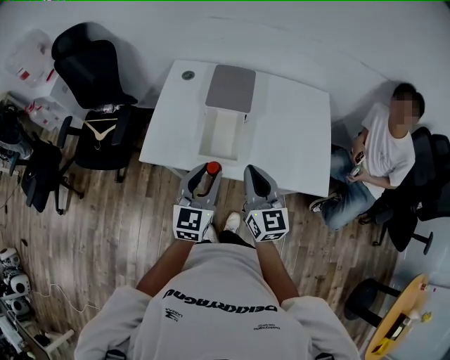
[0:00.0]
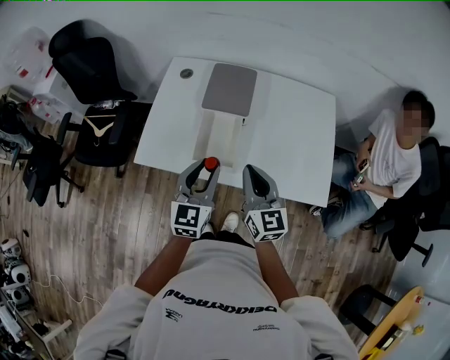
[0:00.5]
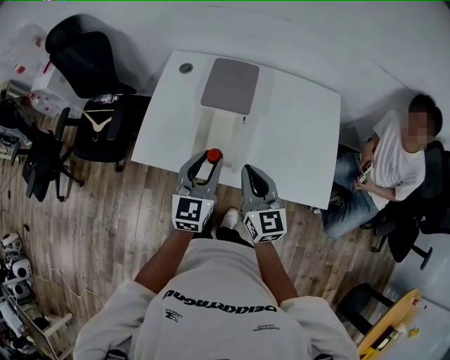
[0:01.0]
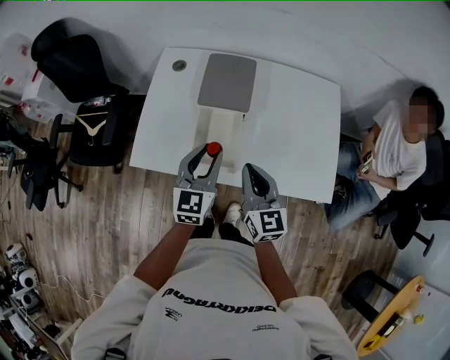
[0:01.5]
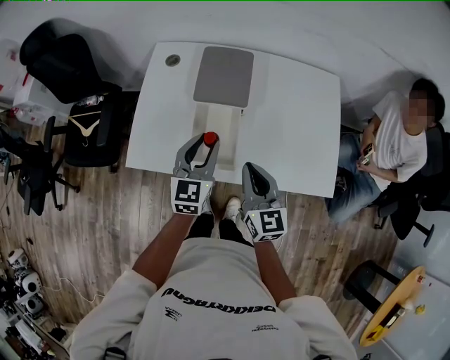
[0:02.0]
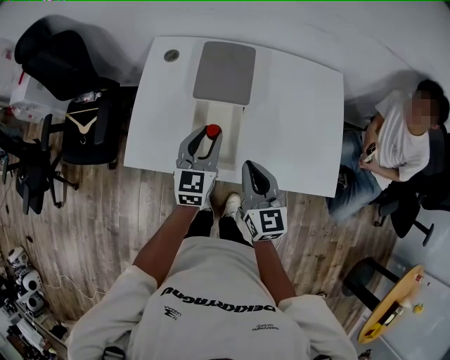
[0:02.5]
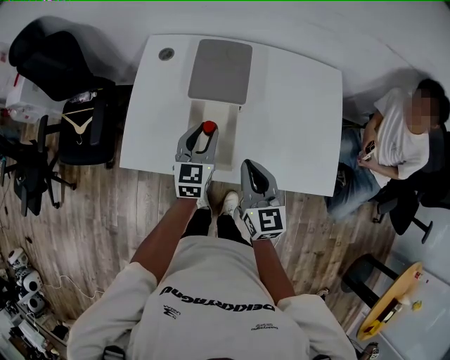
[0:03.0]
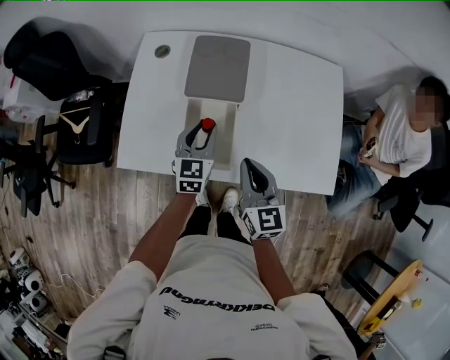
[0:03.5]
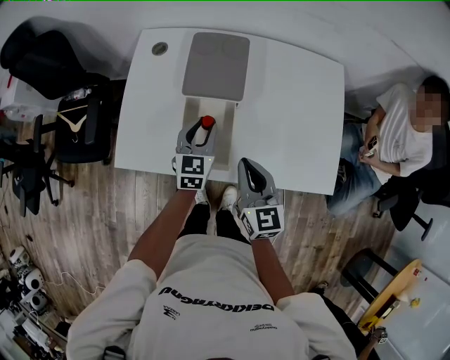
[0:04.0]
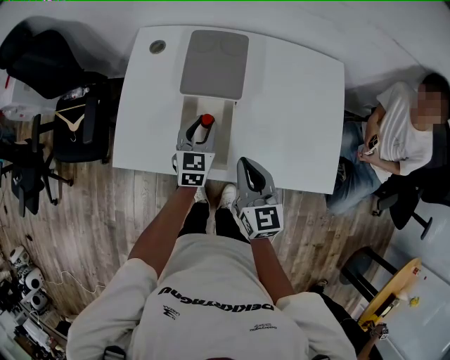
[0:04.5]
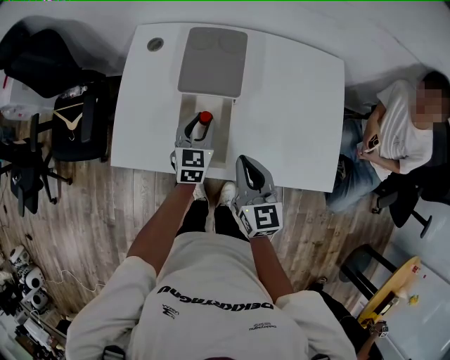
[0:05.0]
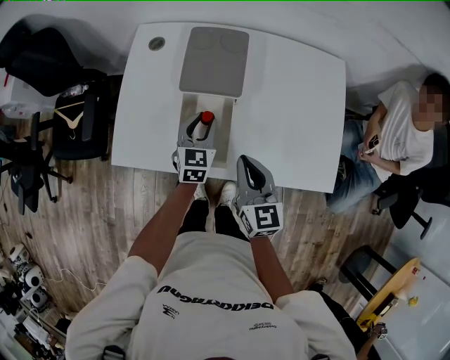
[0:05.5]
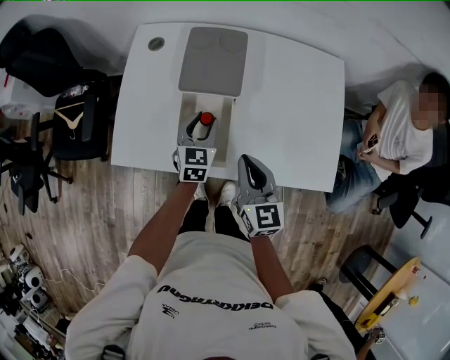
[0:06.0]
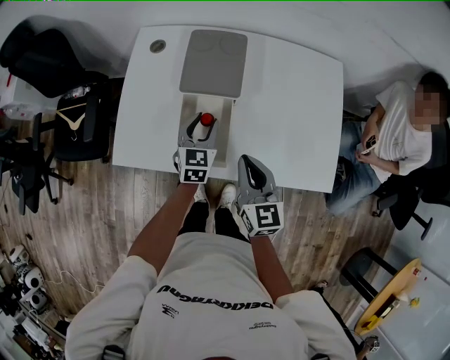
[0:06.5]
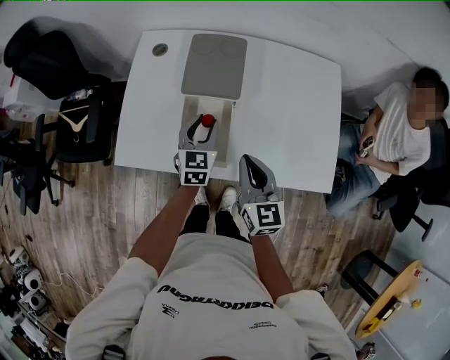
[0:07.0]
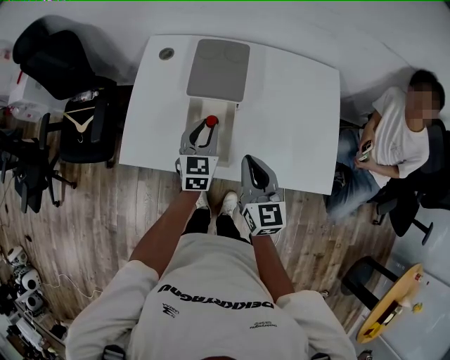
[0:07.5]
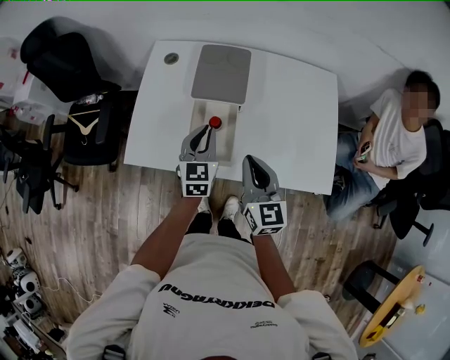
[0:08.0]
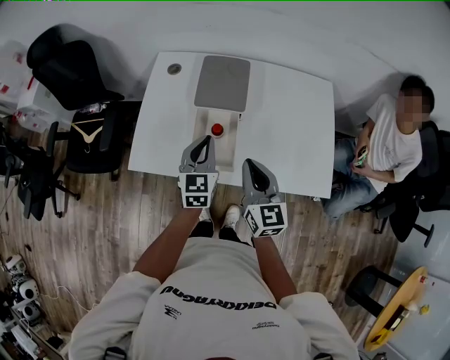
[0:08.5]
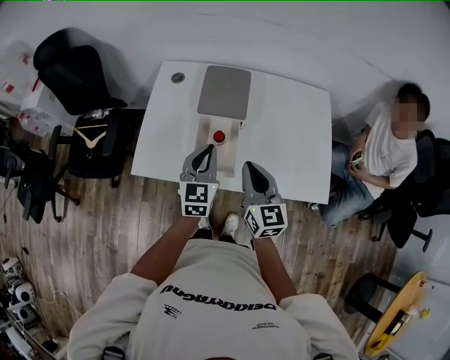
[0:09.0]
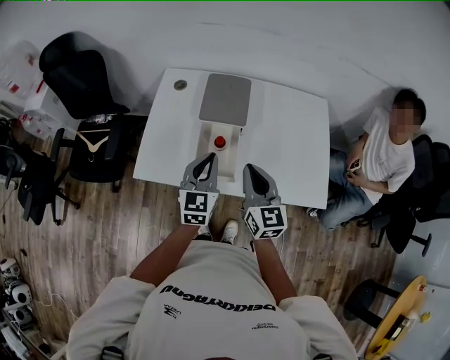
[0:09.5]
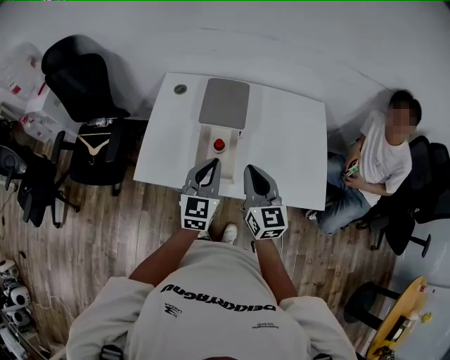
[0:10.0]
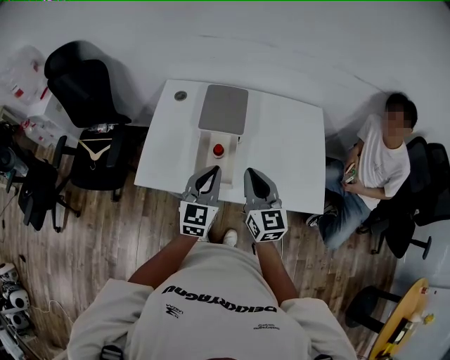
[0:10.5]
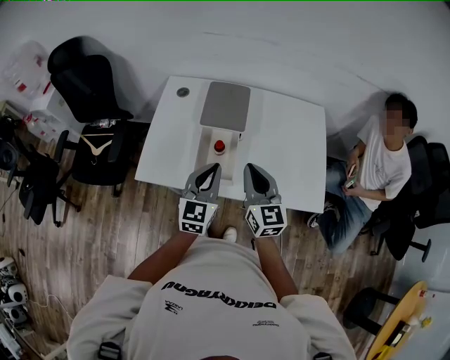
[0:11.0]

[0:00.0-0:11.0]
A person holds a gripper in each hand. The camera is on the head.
0:00.0 to 0:02.0: The left gripper heads forward and downward, covering roughly 15 cm, while the right gripper is displaced forward and downward by approximately 10 cm.
0:02.0 to 0:03.5: The left gripper goes roughly 10 cm downward and forward.
0:03.5 to 0:05.5: The grippers move only a little.
0:05.5 to 0:07.5: The left gripper goes some 5 cm upward.
0:07.5 to 0:09.0: The left gripper shifts about 10 cm upward and backward, and closes its fingers.
0:09.0 to 0:11.0: The left gripper is displaced backward by some 5 cm.

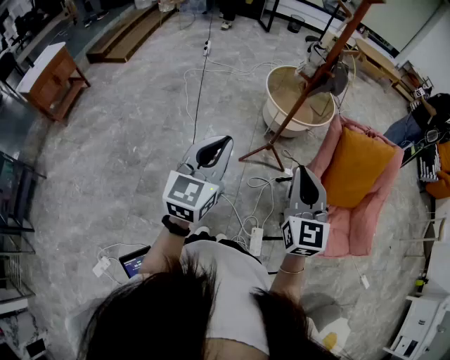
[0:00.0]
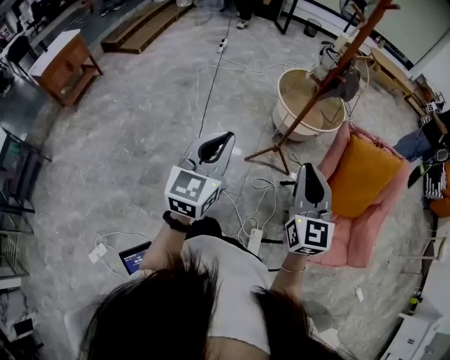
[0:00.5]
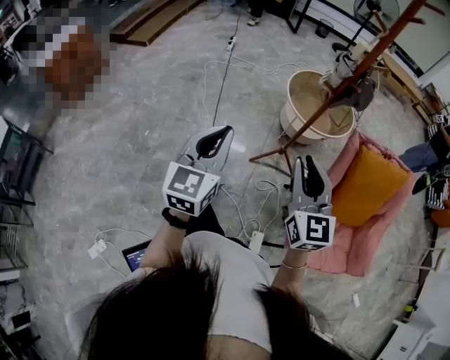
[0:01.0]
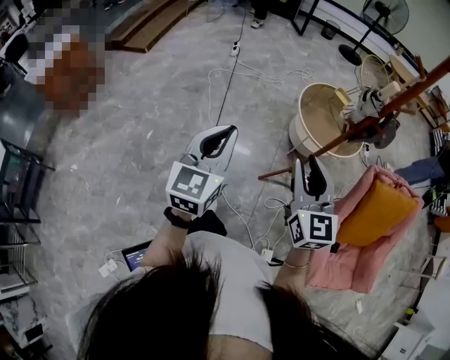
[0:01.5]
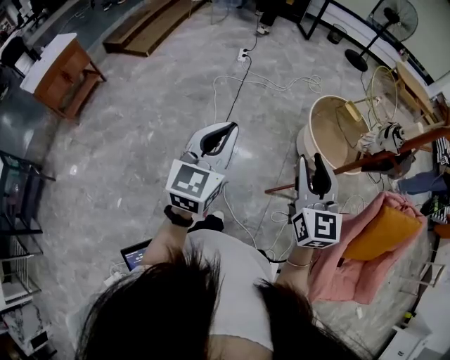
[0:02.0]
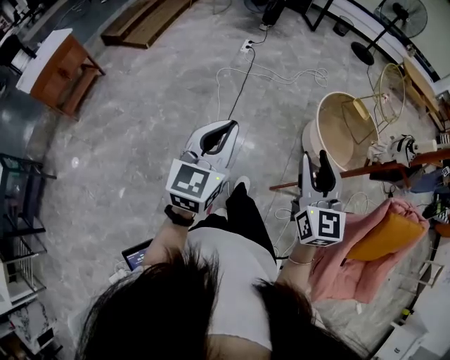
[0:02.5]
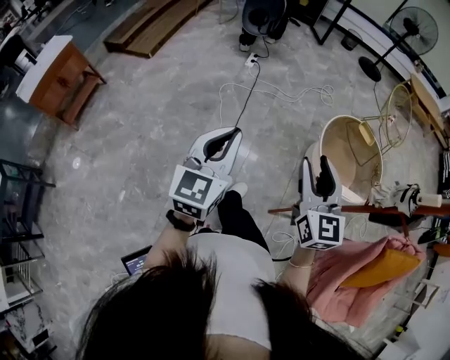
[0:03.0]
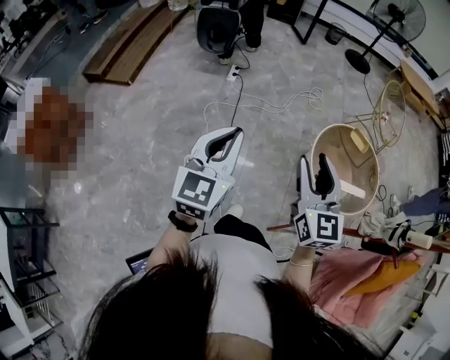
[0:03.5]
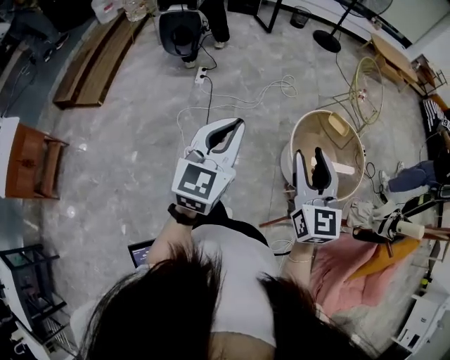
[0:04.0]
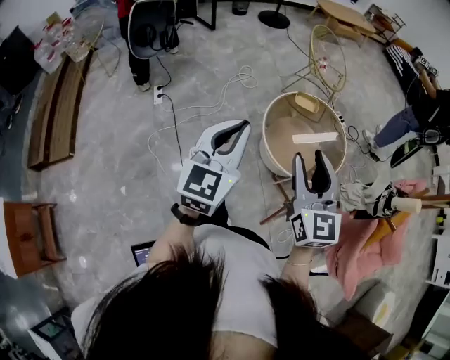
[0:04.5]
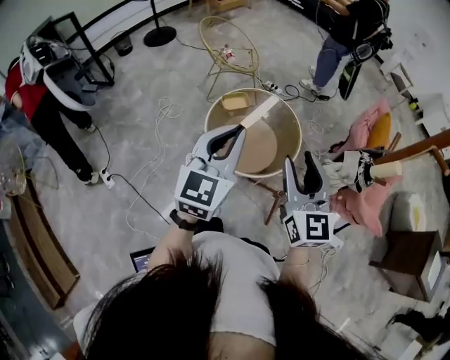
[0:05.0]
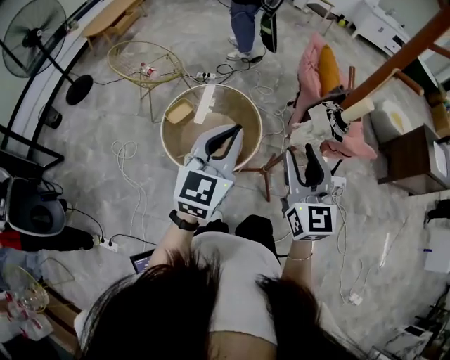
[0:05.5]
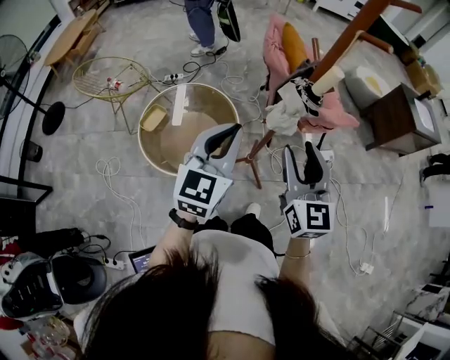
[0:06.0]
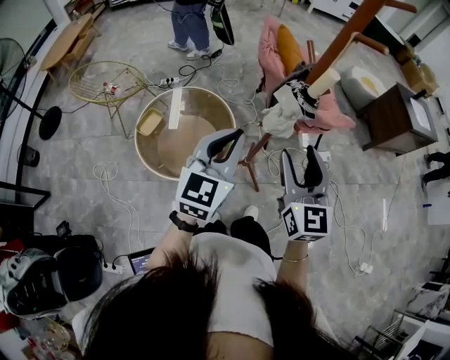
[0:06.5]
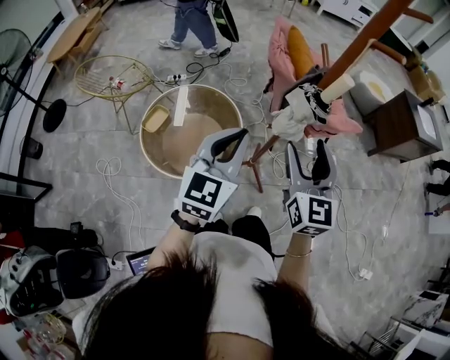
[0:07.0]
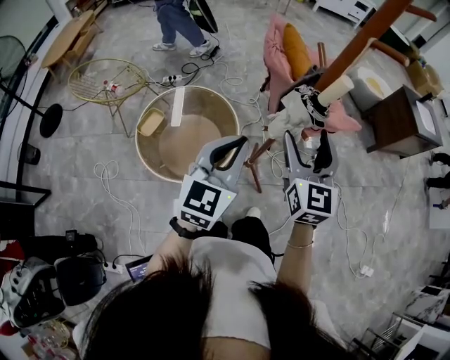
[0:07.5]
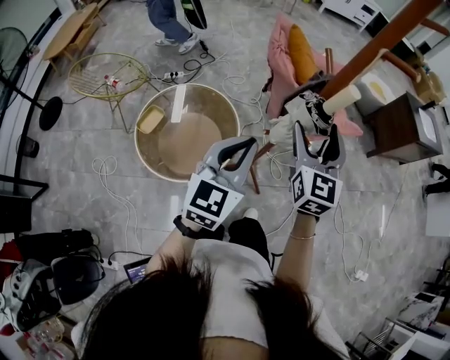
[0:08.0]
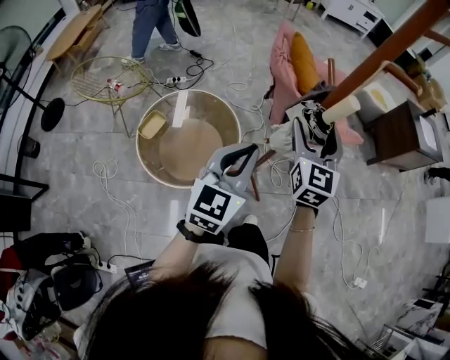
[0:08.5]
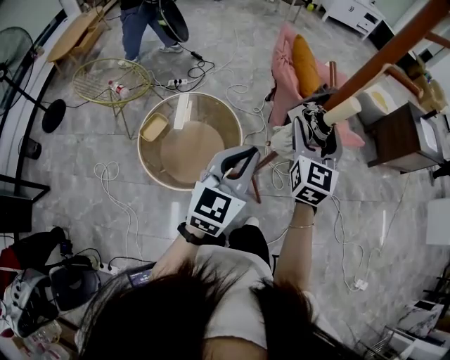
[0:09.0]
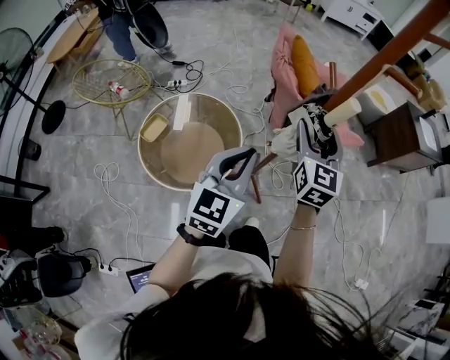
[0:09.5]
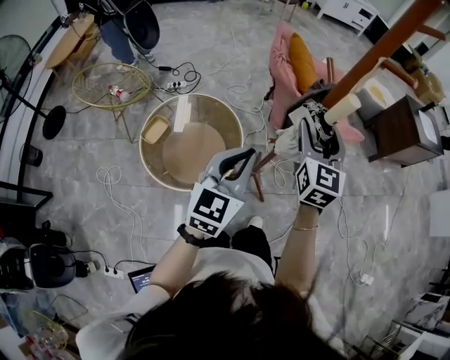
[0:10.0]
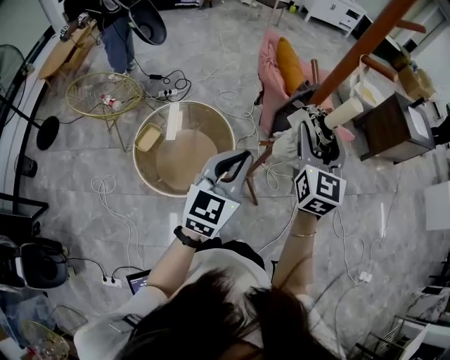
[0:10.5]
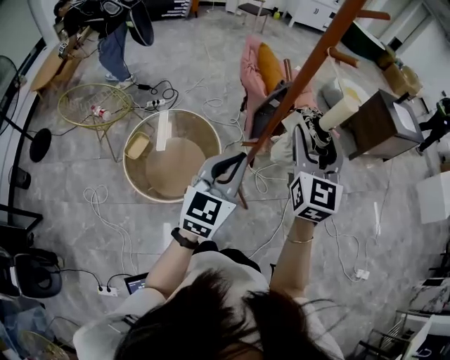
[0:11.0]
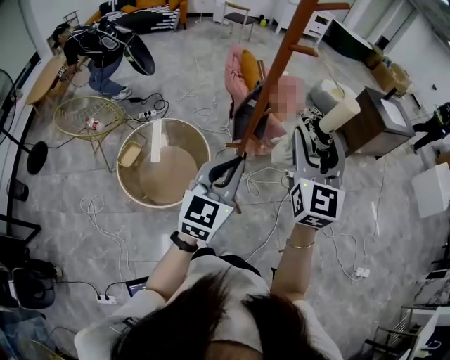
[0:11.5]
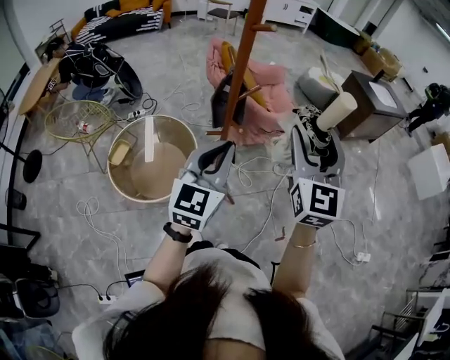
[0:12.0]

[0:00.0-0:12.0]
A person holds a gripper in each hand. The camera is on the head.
0:00.0 to 0:02.0: Both grippers travel together forward and to the left, approximately 40 cm.
0:02.0 to 0:04.0: The grippers both shift forward by some 40 cm.
0:04.0 to 0:06.0: The left gripper changes place by about 40 cm, and turns by about 100 degrees; the right gripper shifts by some 20 cm, and changes its angle by roughly 90 degrees.
0:06.0 to 0:08.0: The right gripper goes roughly 10 cm forward, and opens up.
0:08.0 to 0:10.0: The grippers stay close to where they were, moving slightly.
0:10.0 to 0:12.0: The left gripper moves to the right and upward, some 15 cm. The right gripper moves to the right, backward and upward, about 25 cm.

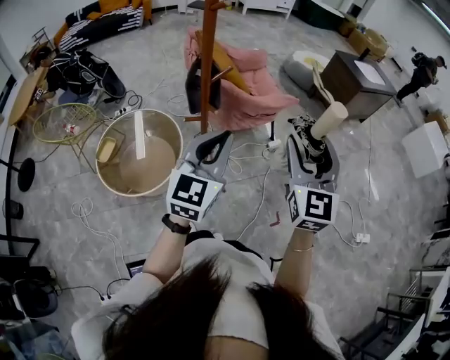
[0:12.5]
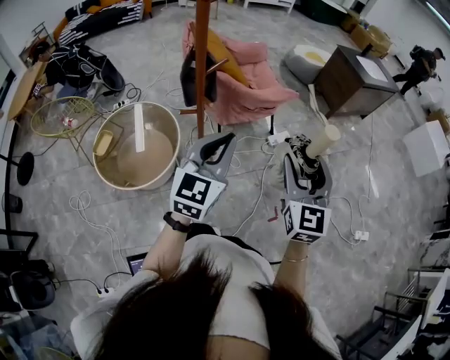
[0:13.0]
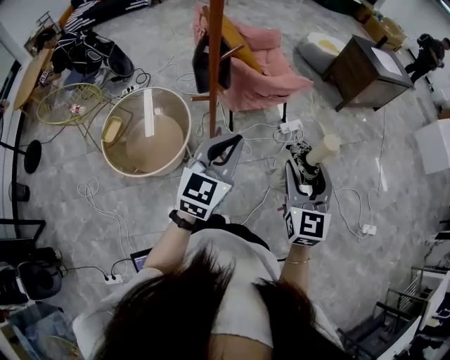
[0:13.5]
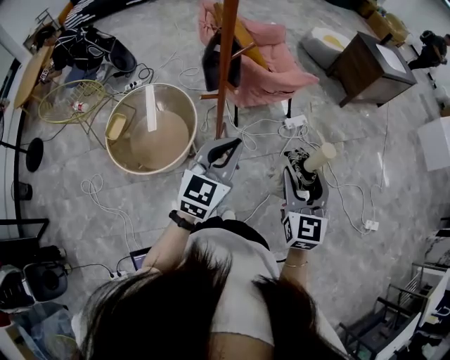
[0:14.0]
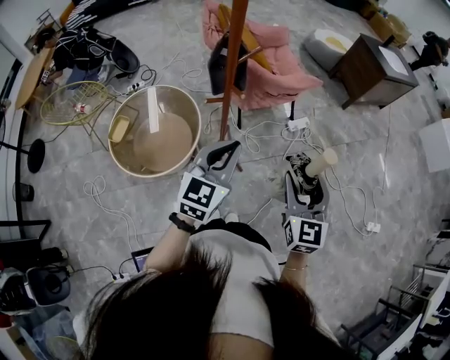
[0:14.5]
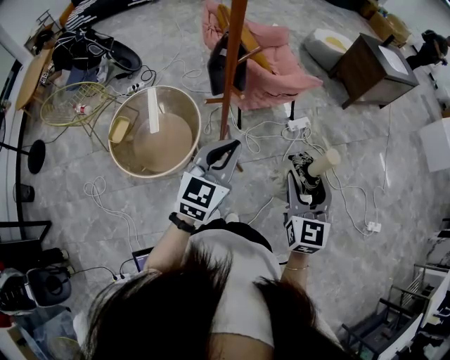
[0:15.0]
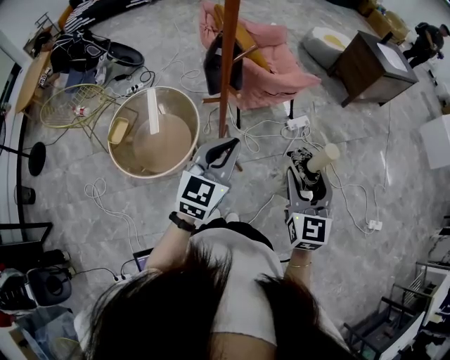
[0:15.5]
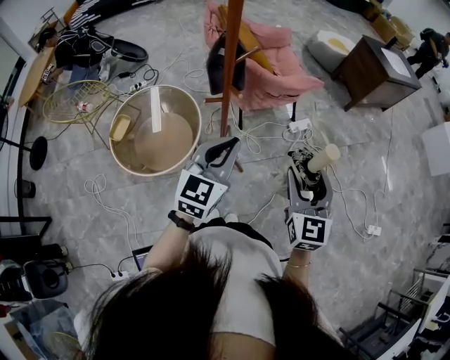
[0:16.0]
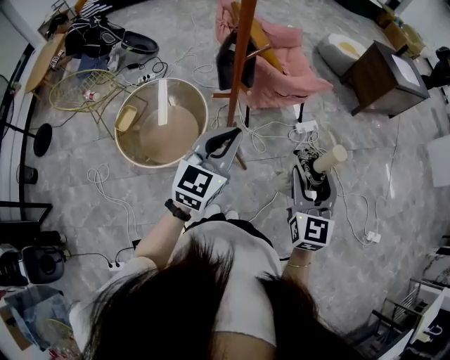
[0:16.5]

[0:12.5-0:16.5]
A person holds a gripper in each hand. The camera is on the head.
0:12.5 to 0:14.5: The right gripper is displaced downward by approximately 15 cm. Meanwhile the left gripper is displaced downward by roughly 10 cm.
0:14.5 to 0:16.5: The grippers stay close to where they were, moving slightly.
